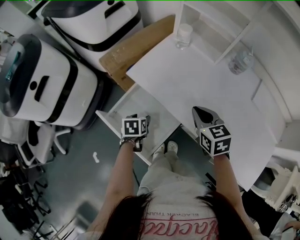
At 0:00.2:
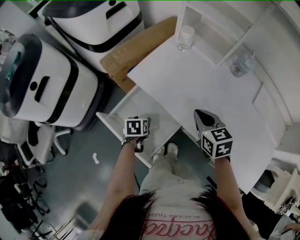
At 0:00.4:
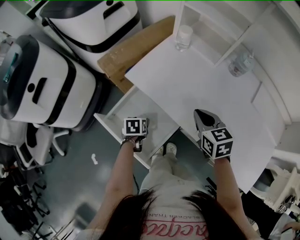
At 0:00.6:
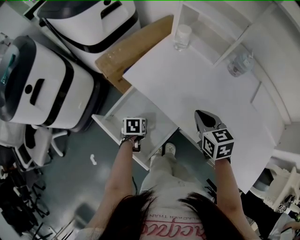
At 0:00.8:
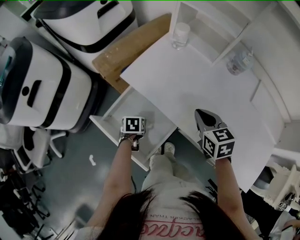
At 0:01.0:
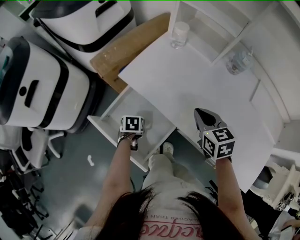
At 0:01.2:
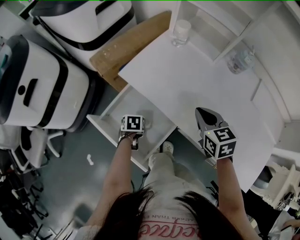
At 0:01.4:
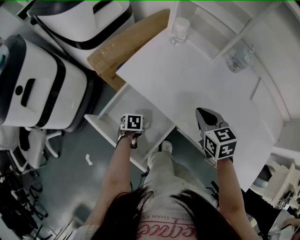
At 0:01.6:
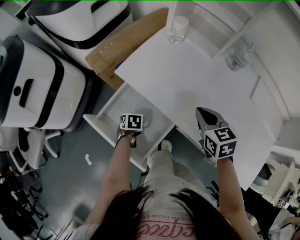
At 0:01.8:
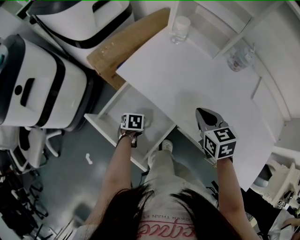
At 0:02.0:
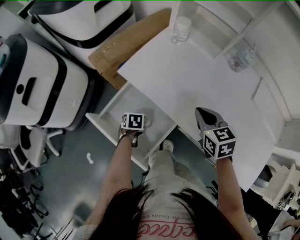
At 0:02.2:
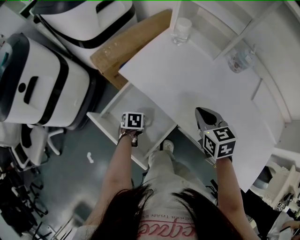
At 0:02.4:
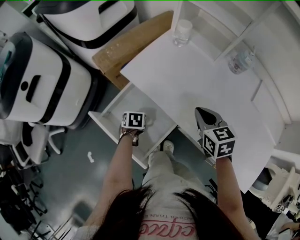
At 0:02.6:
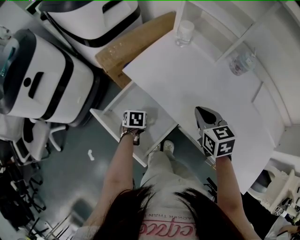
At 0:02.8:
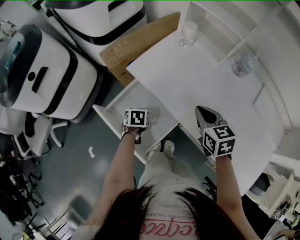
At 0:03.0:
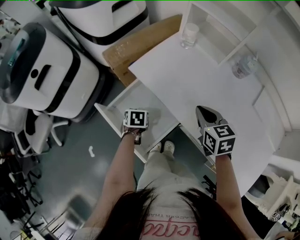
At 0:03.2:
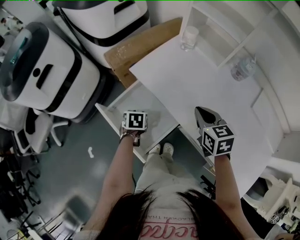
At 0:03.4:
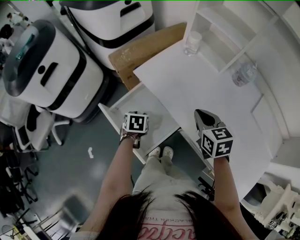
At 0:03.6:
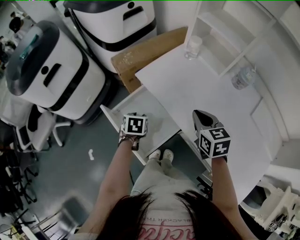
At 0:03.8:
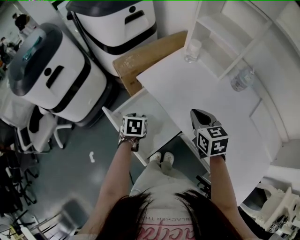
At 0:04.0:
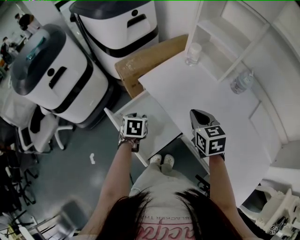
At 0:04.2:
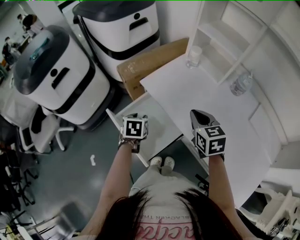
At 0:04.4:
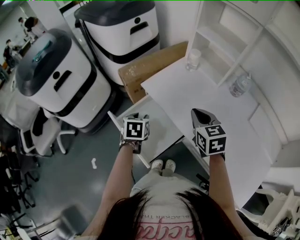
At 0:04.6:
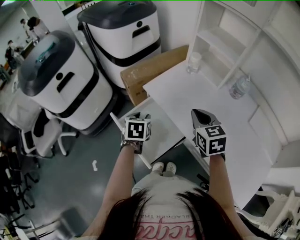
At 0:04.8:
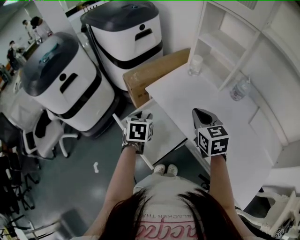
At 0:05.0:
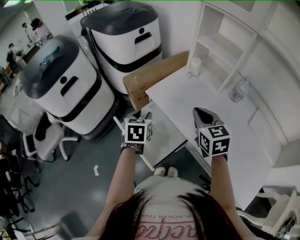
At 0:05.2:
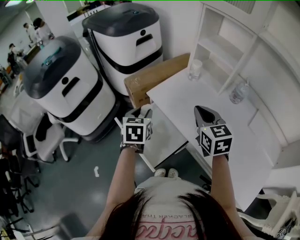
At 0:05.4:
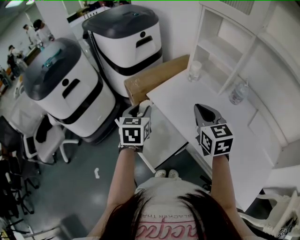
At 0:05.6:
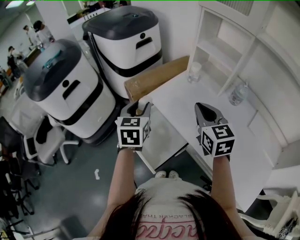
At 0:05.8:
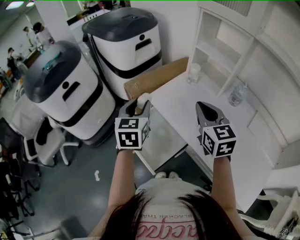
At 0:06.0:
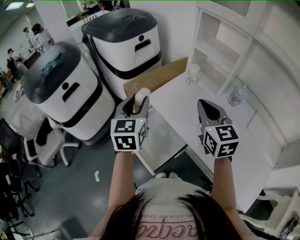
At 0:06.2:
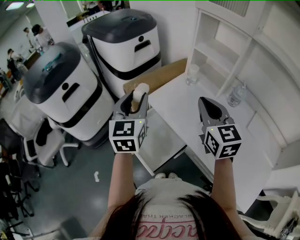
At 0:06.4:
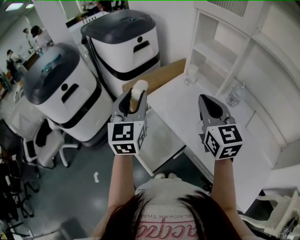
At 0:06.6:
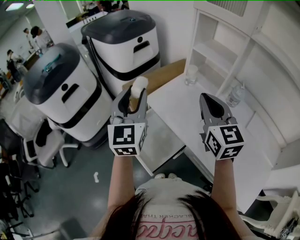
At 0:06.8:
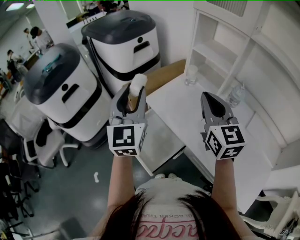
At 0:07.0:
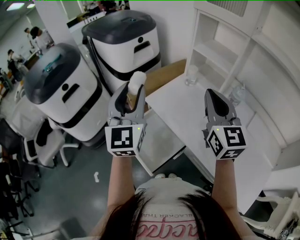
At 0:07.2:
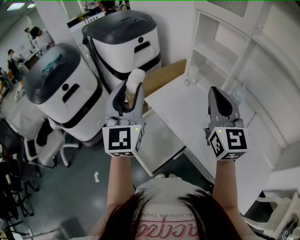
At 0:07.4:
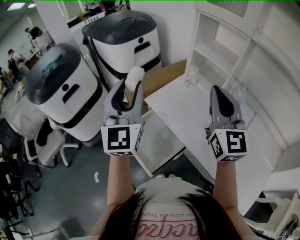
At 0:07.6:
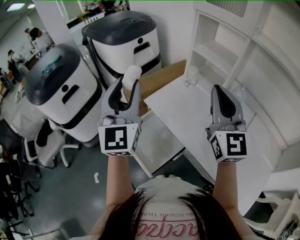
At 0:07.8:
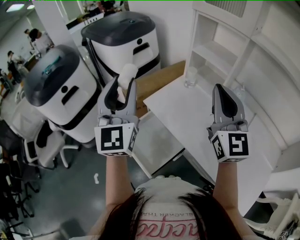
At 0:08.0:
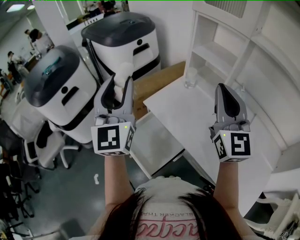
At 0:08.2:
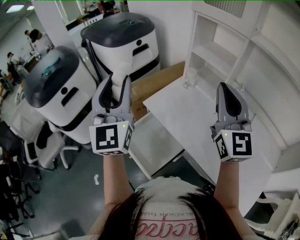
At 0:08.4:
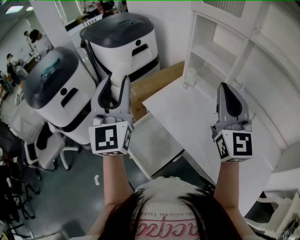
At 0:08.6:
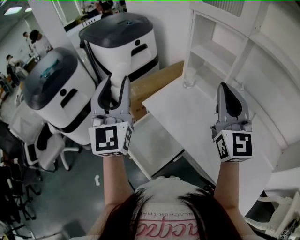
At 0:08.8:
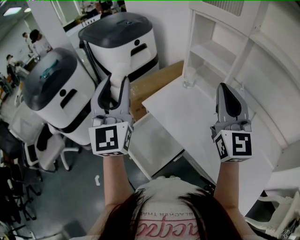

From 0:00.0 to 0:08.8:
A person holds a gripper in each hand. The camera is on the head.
From 0:00.0 to 0:01.4: The left gripper is displaced downward by about 10 cm.
From 0:01.4 to 0:03.0: The left gripper heads upward, covering approximately 10 cm.
From 0:03.0 to 0:04.4: The left gripper moves upward, roughly 15 cm. Meanwhile the right gripper goes roughly 5 cm upward.
From 0:04.4 to 0:05.8: The left gripper heads upward, covering roughly 20 cm, and angles its fingers upward, by about 30 degrees. Meanwhile the right gripper goes approximately 10 cm upward.
From 0:05.8 to 0:07.4: Both grippers travel together upward, about 15 cm. The left gripper angles its fingers upward, by approximately 30 degrees. The right gripper turns by roughly 30 degrees.
From 0:07.4 to 0:08.8: The grippers move only a little.

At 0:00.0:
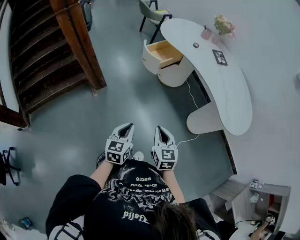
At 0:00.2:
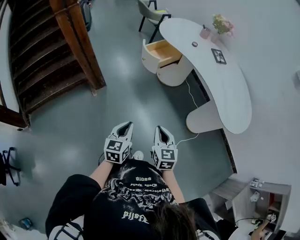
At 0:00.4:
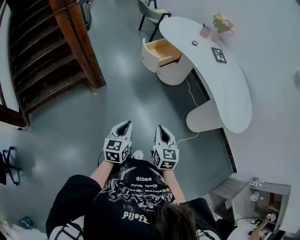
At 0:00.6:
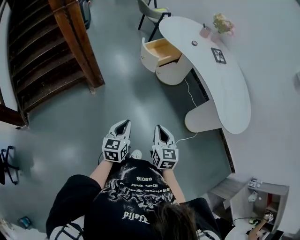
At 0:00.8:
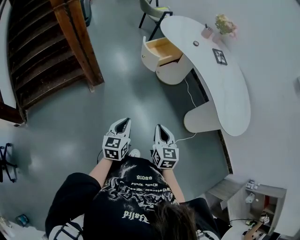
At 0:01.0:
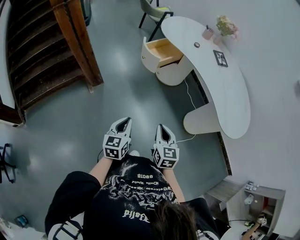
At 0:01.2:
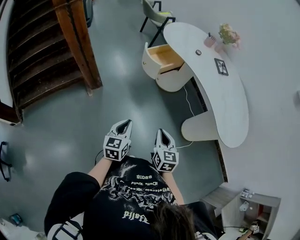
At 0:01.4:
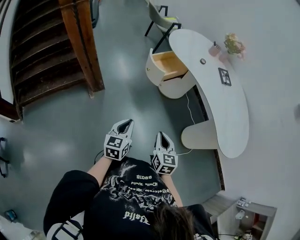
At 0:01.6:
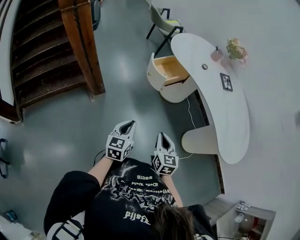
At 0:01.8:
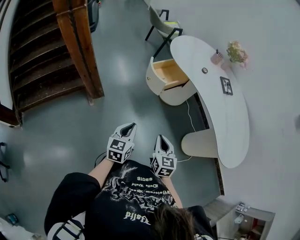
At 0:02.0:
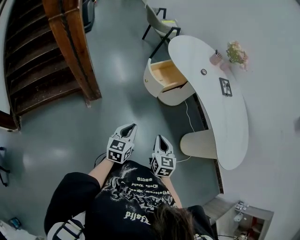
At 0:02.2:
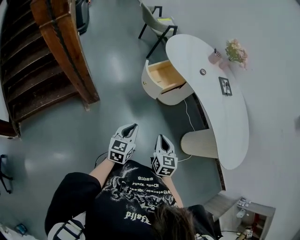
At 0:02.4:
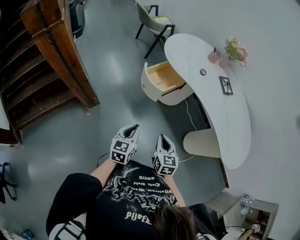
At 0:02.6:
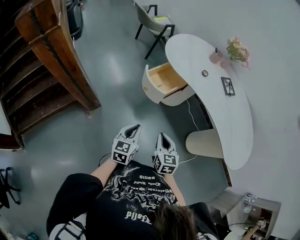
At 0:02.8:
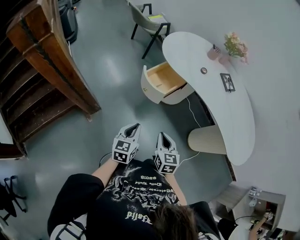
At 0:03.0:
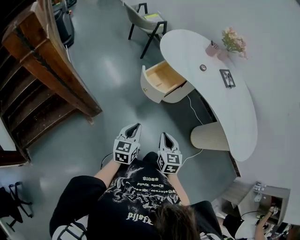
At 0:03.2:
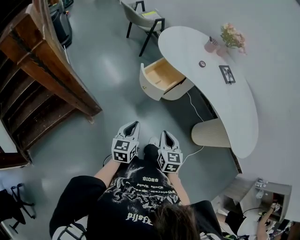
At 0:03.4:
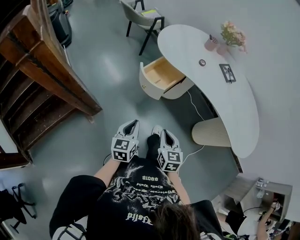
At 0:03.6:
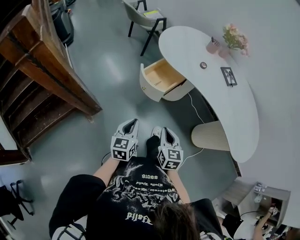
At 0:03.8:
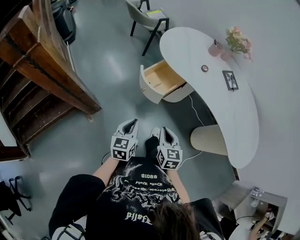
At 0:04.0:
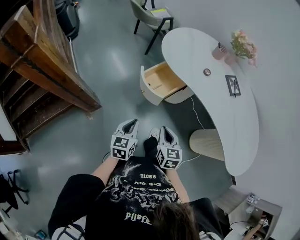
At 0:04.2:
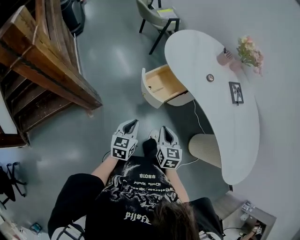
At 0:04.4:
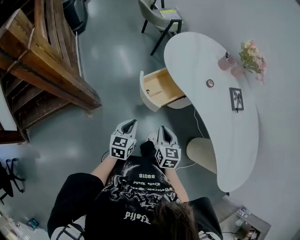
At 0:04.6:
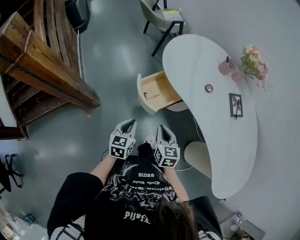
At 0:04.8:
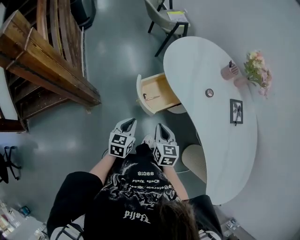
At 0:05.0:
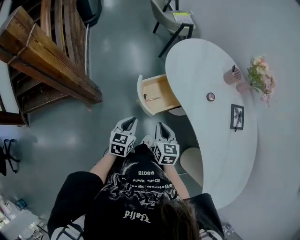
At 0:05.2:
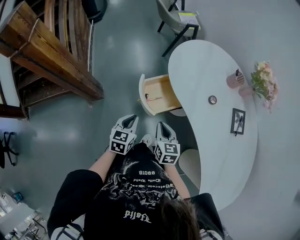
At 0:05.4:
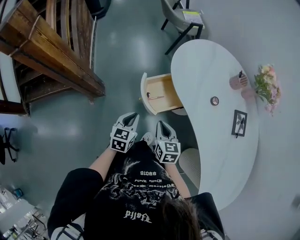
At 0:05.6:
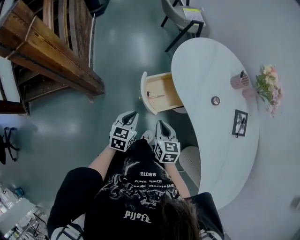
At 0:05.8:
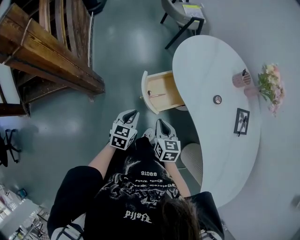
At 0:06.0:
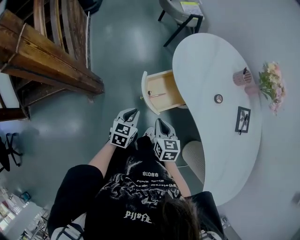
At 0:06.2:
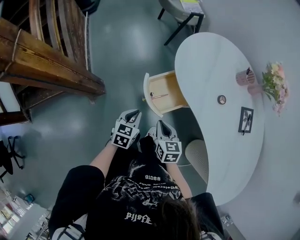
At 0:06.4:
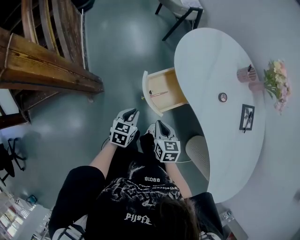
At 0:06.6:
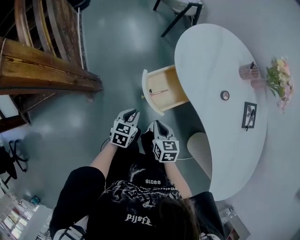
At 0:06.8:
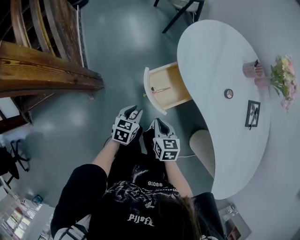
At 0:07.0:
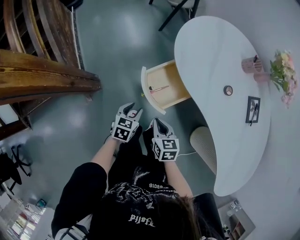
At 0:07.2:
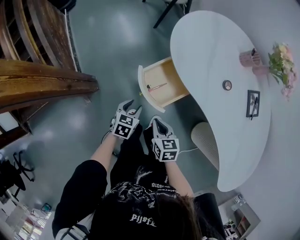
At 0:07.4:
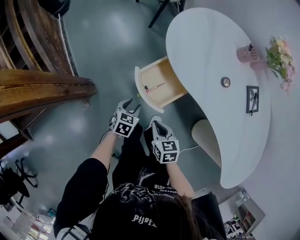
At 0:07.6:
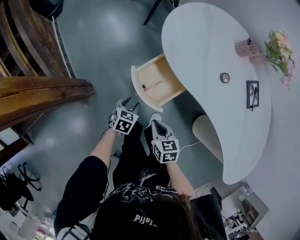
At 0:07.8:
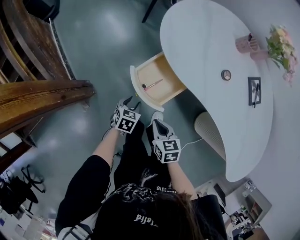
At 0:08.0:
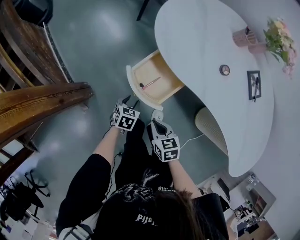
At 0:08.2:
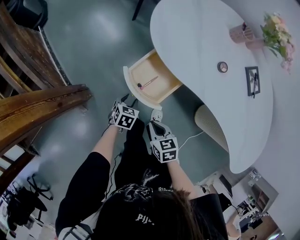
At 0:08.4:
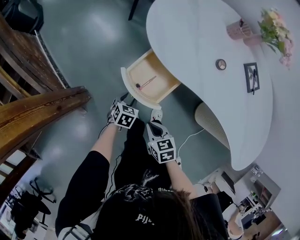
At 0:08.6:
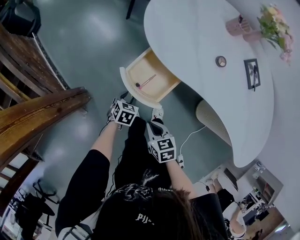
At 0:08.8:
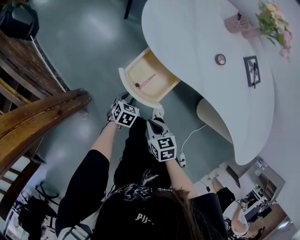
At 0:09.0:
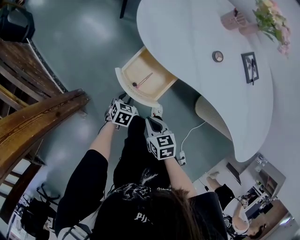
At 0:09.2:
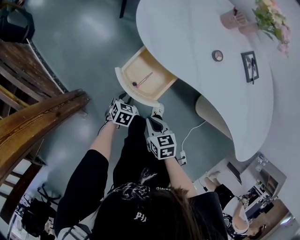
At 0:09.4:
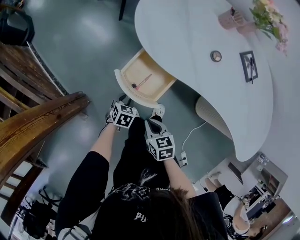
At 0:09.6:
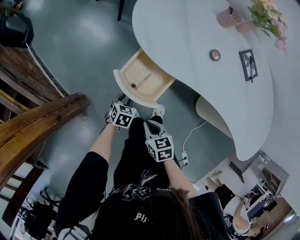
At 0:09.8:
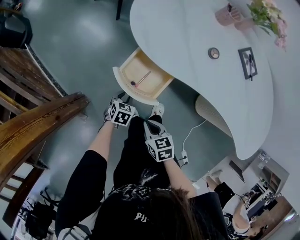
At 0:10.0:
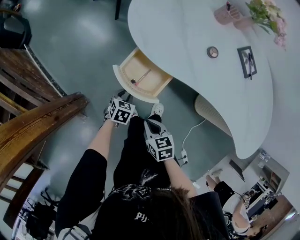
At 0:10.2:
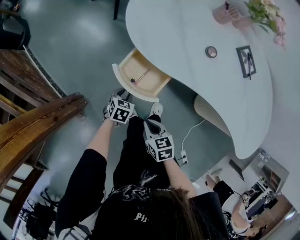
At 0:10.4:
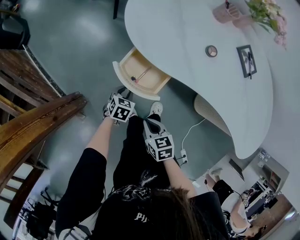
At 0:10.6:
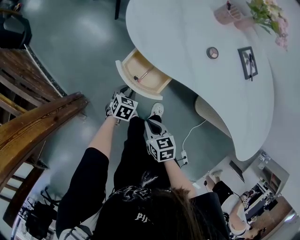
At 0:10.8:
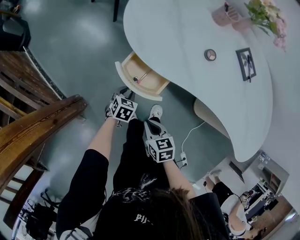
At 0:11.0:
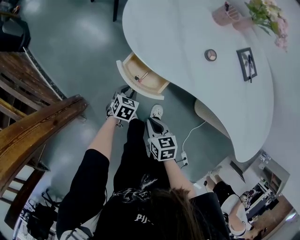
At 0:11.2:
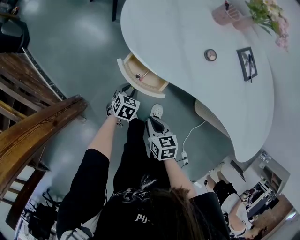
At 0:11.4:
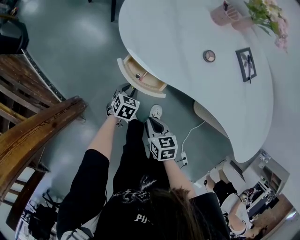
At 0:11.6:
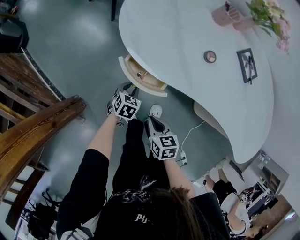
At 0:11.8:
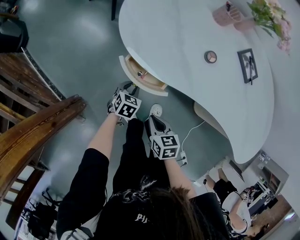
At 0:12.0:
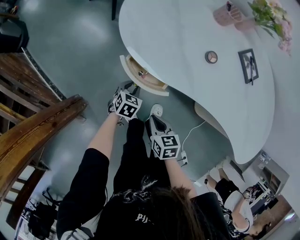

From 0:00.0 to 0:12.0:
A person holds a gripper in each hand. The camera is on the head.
From 0:00.0 to 0:01.6: Both grippers move forward, about 15 cm.
From 0:01.6 to 0:03.0: The grippers both shift forward and to the left by about 20 cm.
From 0:03.0 to 0:04.4: Both grippers travel together forward, about 15 cm.
From 0:04.4 to 0:06.0: The two grippers go about 10 cm forward.
From 0:06.0 to 0:07.6: The left gripper is displaced downward by roughly 15 cm, rotates roughly 20 degrees, and opens; the right gripper is displaced downward by approximately 10 cm.
From 0:07.6 to 0:09.0: The left gripper goes about 5 cm downward.
From 0:09.0 to 0:10.4: The grippers stay close to where they were, moving slightly.
From 0:10.4 to 0:12.0: The right gripper moves forward, approximately 5 cm. Meanwhile the left gripper goes approximately 10 cm forward and to the right.

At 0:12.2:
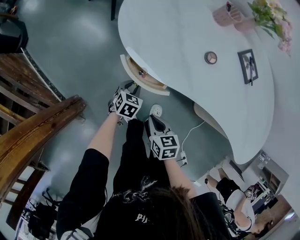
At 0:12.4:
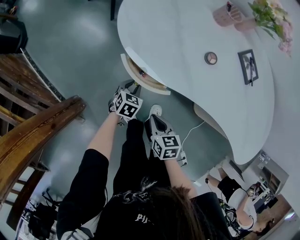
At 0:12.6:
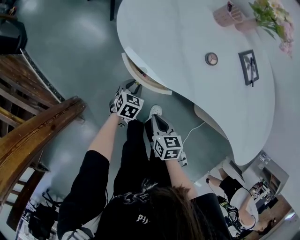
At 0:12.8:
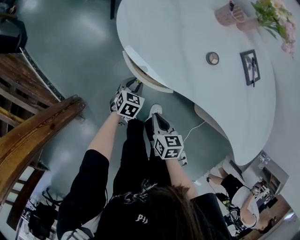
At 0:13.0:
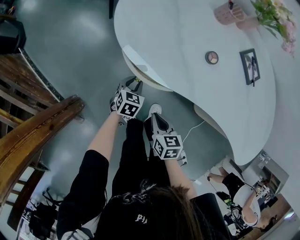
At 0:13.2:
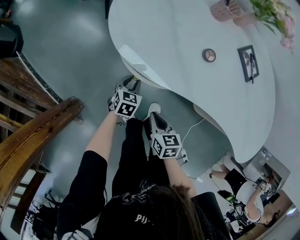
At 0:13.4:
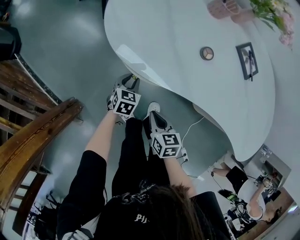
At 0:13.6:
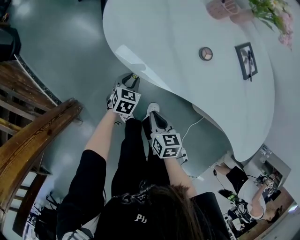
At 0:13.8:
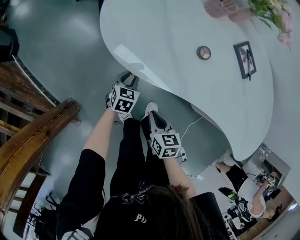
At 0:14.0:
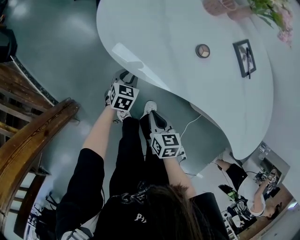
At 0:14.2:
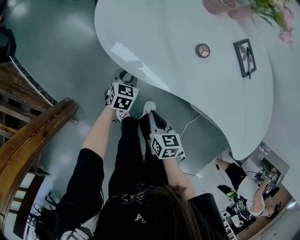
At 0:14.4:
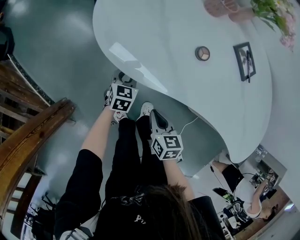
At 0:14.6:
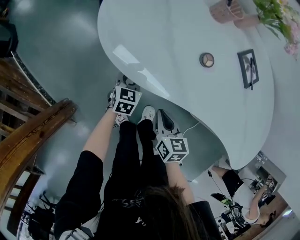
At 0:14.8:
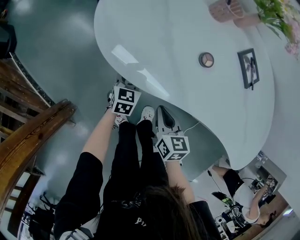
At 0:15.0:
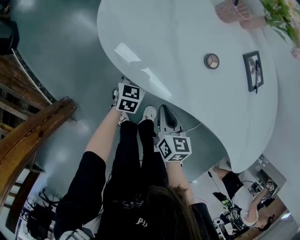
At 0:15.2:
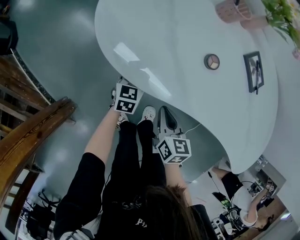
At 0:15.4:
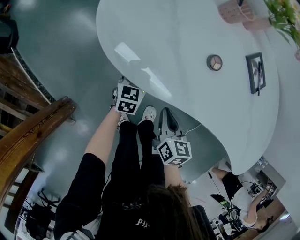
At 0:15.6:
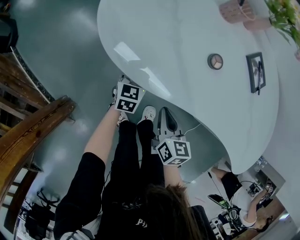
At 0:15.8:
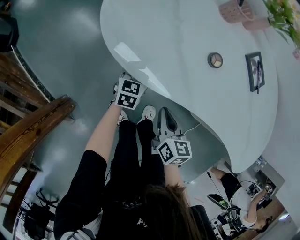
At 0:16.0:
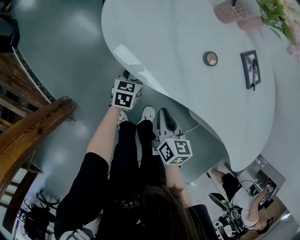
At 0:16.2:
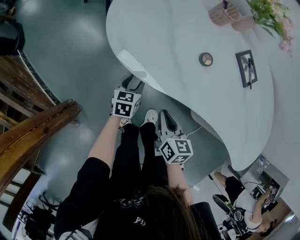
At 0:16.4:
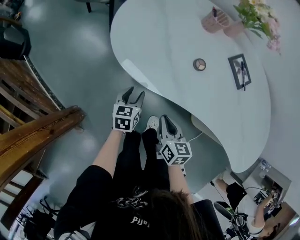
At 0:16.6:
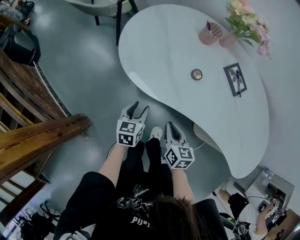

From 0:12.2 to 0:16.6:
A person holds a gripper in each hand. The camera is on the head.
From 0:12.2 to 0:13.6: The left gripper ends up roughly 5 cm from where it was.
From 0:13.6 to 0:15.2: The left gripper is displaced forward by some 5 cm. The right gripper is displaced forward and to the right by some 10 cm.
From 0:15.2 to 0:16.6: The left gripper shifts roughly 20 cm upward and backward. Meanwhile the right gripper shifts about 10 cm upward and backward.
